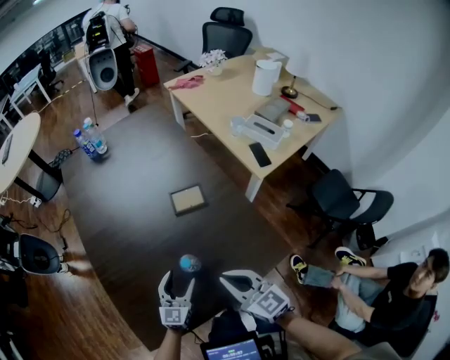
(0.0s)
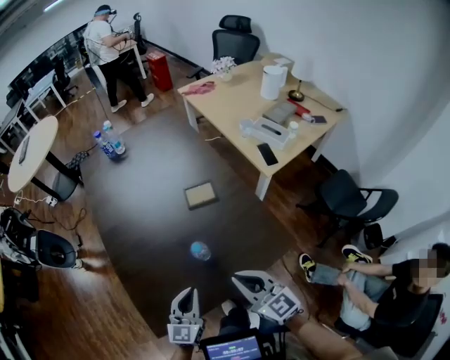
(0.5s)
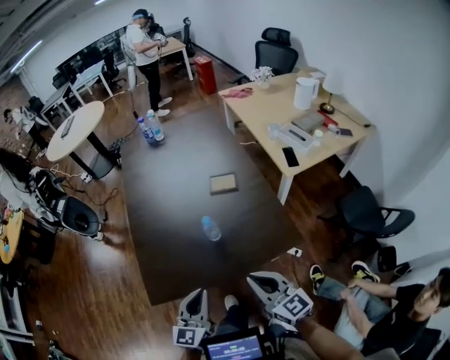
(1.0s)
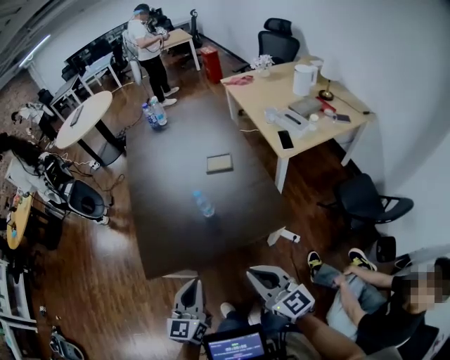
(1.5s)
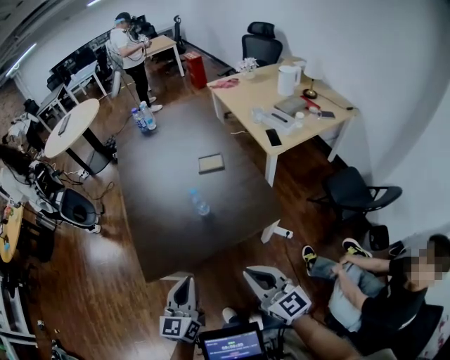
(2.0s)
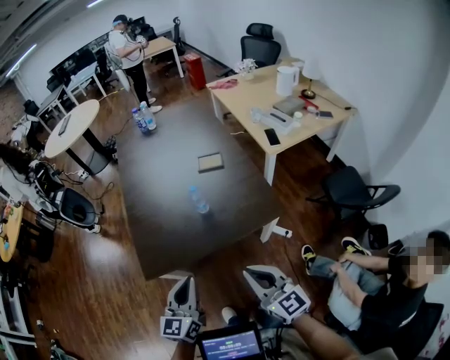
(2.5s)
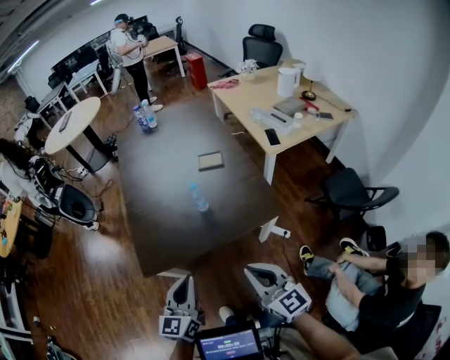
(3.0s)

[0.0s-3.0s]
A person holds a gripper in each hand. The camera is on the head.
0.0s to 1.5s: The left gripper travels backward and upward by some 40 cm, and closes its fingers. The right gripper moves backward, some 25 cm.
1.5s to 3.0s: The right gripper moves roughly 5 cm. Meanwhile the left gripper ends up approximately 5 cm from where it was.

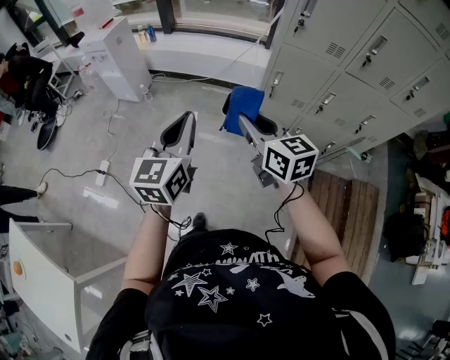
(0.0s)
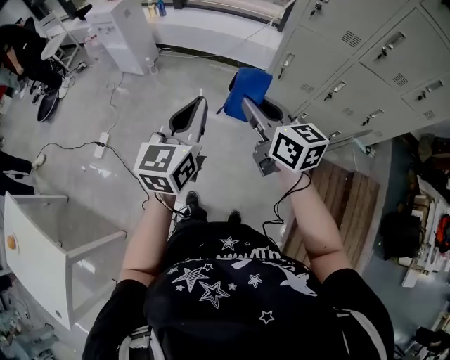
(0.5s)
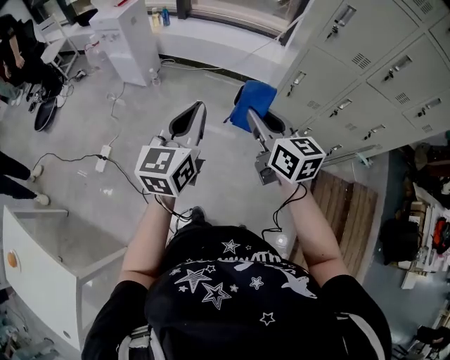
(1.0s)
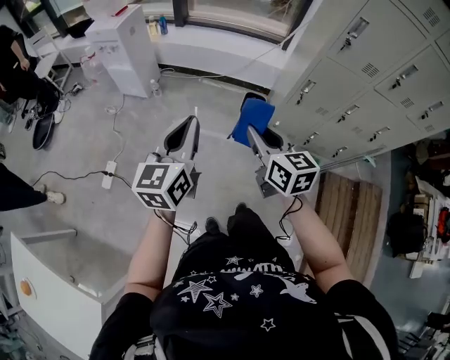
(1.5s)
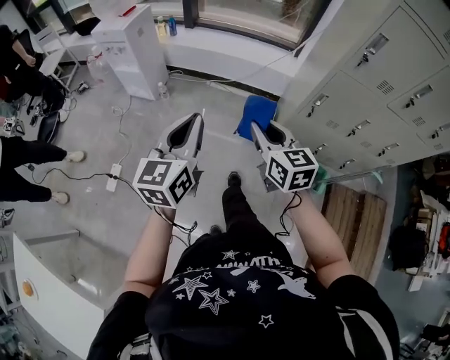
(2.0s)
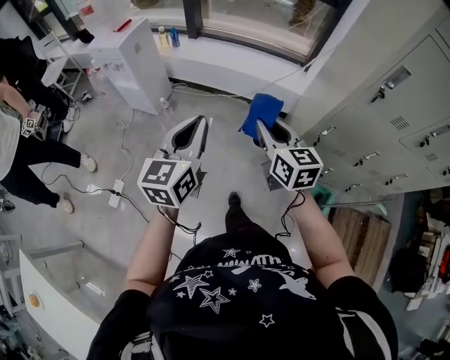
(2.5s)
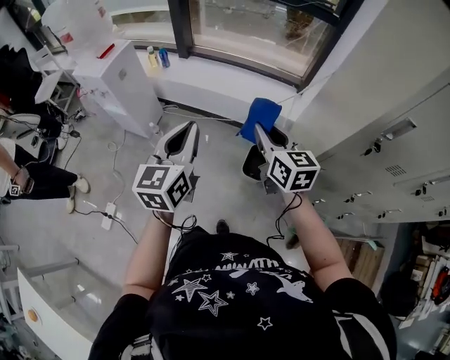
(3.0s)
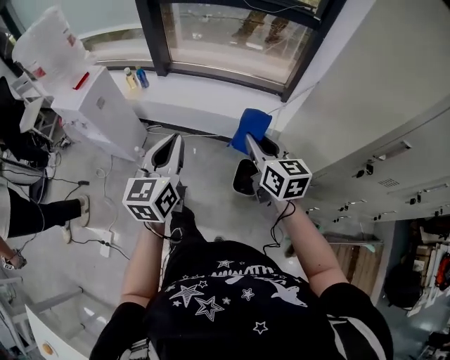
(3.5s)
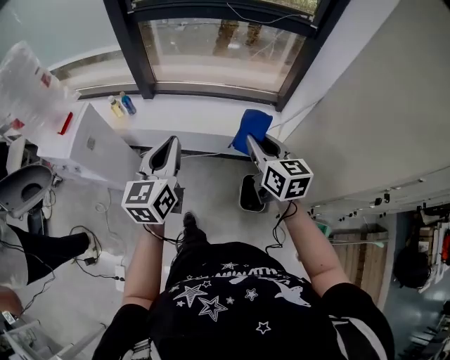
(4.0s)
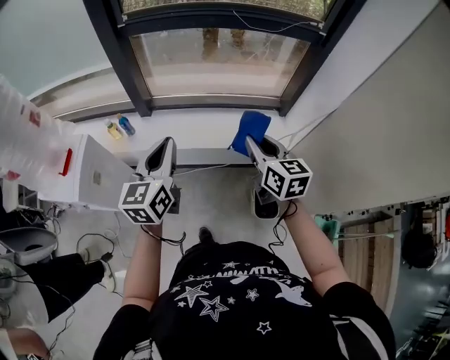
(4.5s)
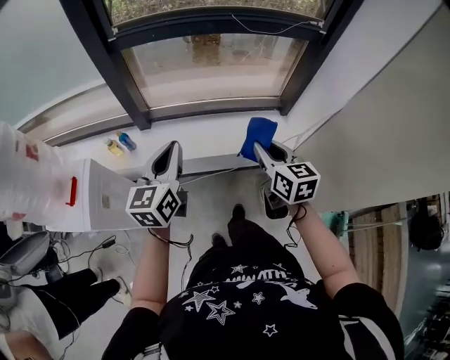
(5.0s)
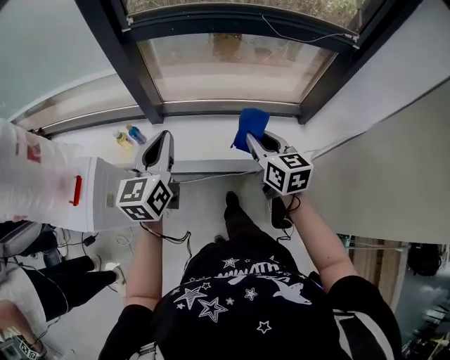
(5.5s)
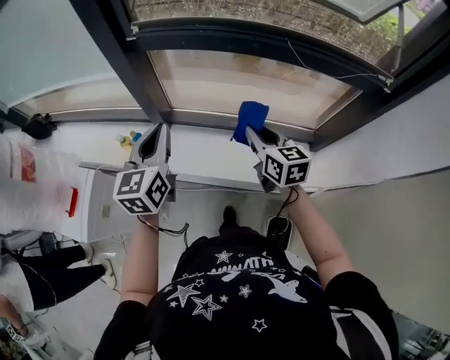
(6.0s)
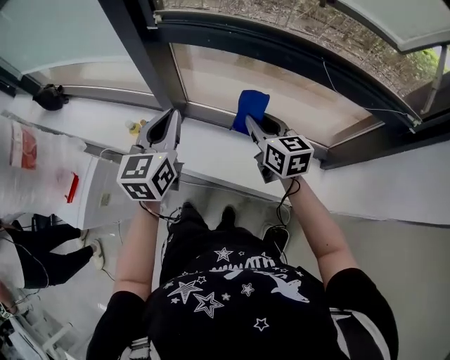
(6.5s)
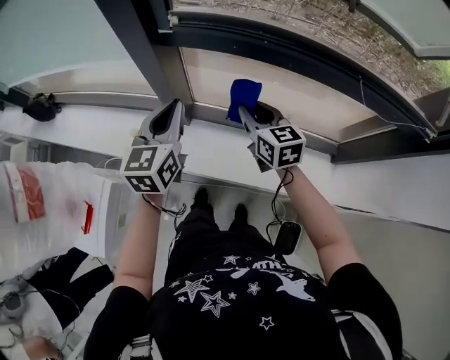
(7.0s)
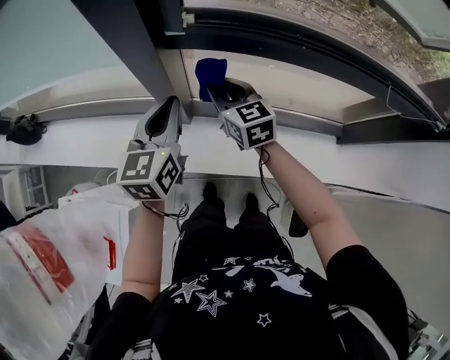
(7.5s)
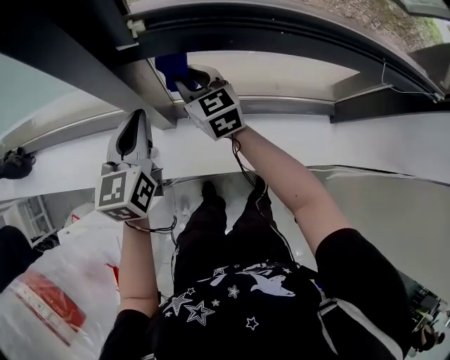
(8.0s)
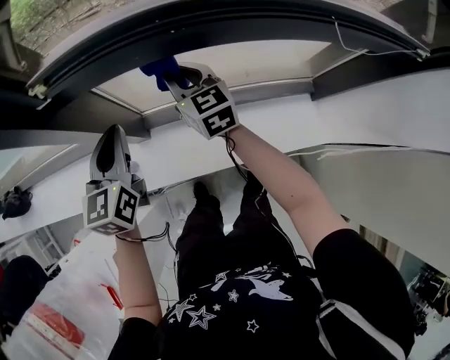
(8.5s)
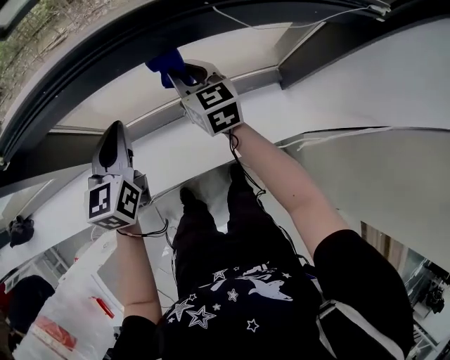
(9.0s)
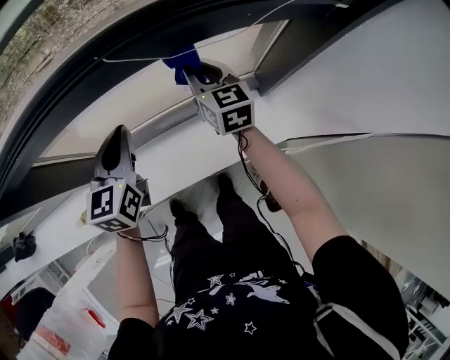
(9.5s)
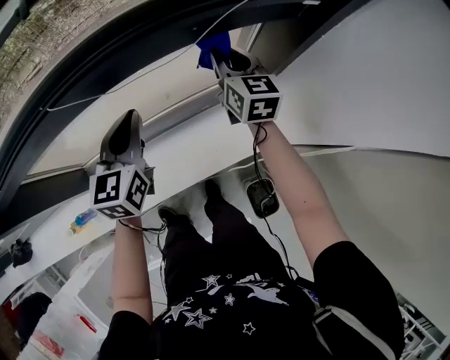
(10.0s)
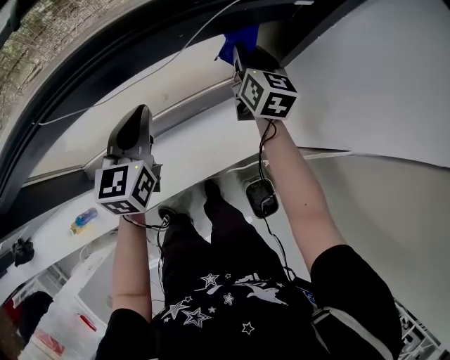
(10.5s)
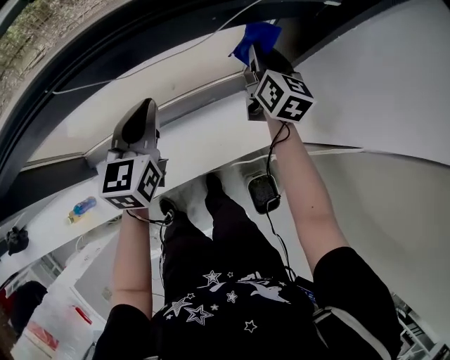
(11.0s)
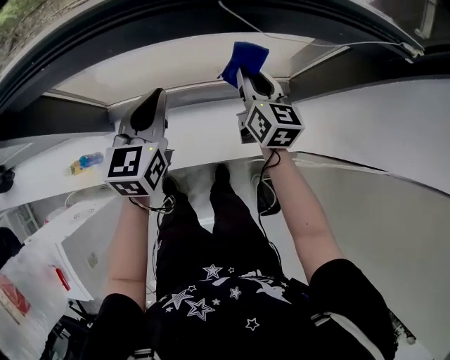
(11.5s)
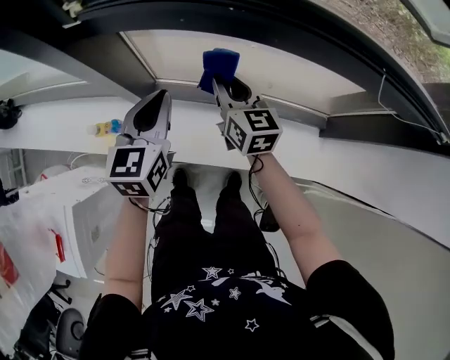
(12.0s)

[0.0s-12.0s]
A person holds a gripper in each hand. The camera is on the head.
0.0s to 2.0s: Both grippers move to the left and forward, approximately 20 cm.
2.0s to 4.0s: The two grippers travel together, forward, about 50 cm.
4.0s to 6.0s: The two grippers travel together, forward, roughly 40 cm.
6.0s to 8.0s: The right gripper heads forward and to the left, covering approximately 40 cm; the left gripper goes some 25 cm forward and to the left.
8.0s to 10.0s: The pair of grippers is taken some 60 cm. The left gripper changes its angle by roughly 20 degrees. The right gripper swivels approximately 40 degrees.
10.0s to 12.0s: The right gripper moves some 50 cm, and turns by approximately 30 degrees. Meanwhile the left gripper changes place by some 35 cm, and swivels some 20 degrees.

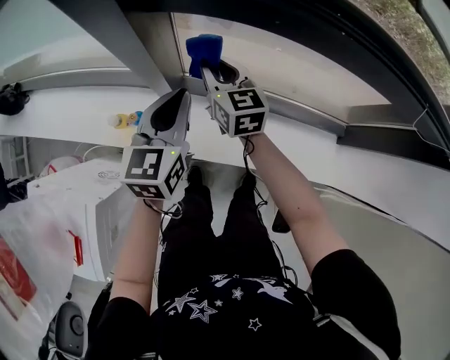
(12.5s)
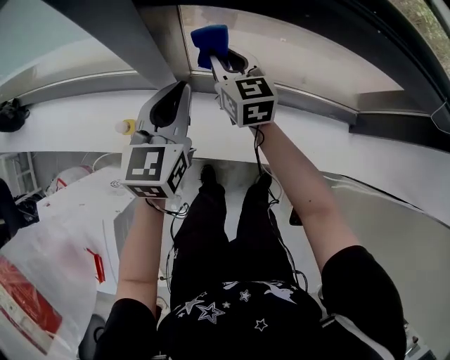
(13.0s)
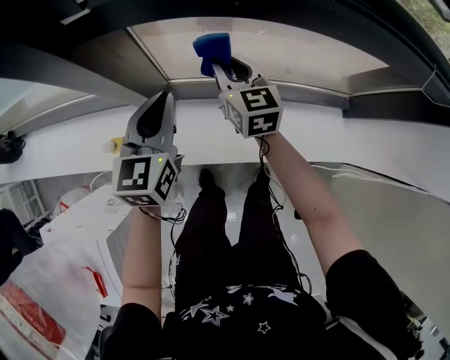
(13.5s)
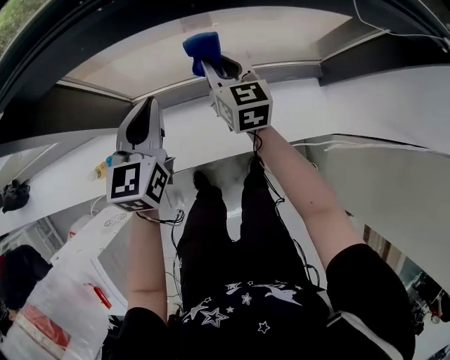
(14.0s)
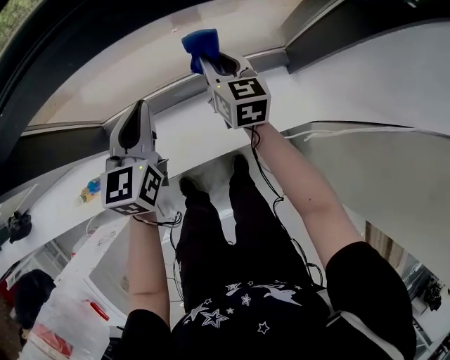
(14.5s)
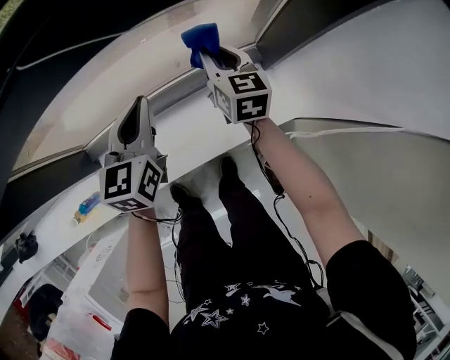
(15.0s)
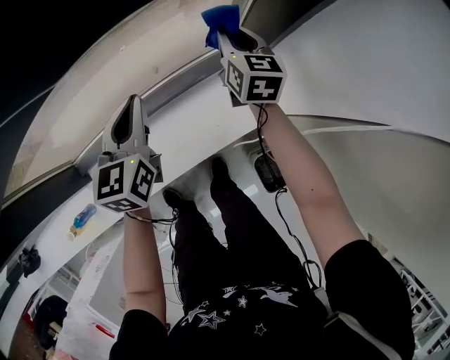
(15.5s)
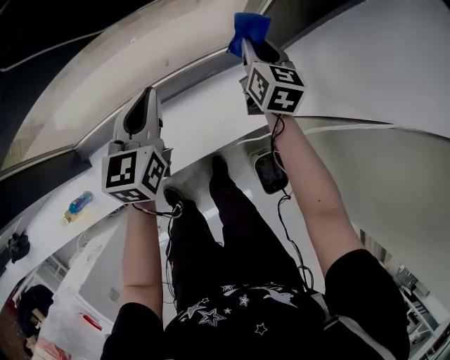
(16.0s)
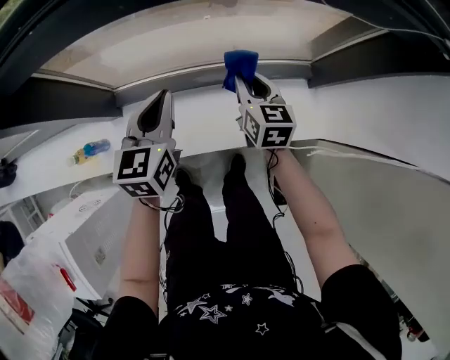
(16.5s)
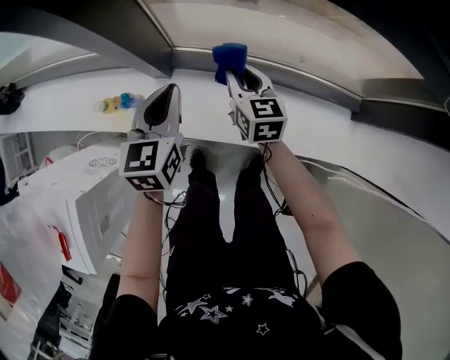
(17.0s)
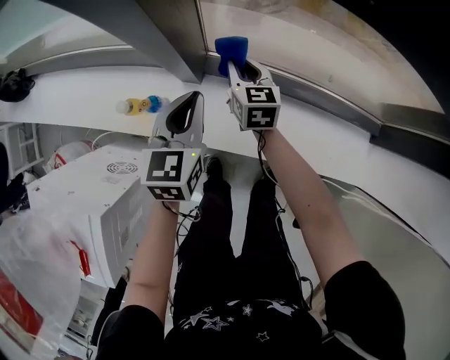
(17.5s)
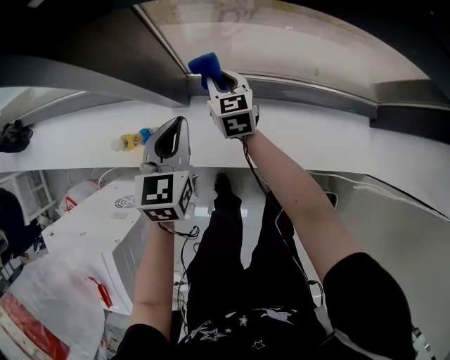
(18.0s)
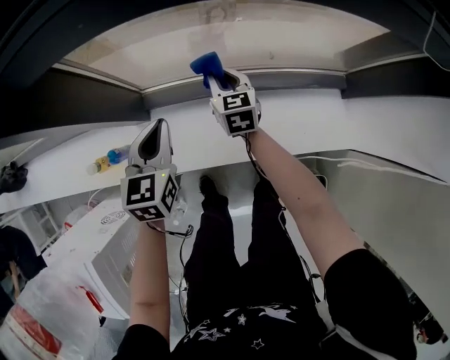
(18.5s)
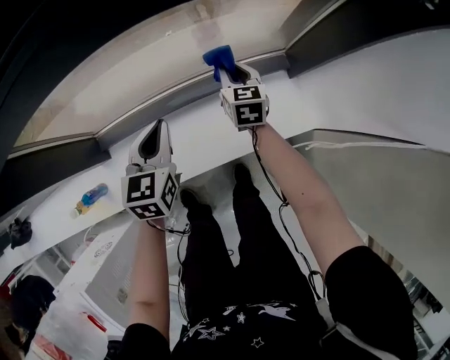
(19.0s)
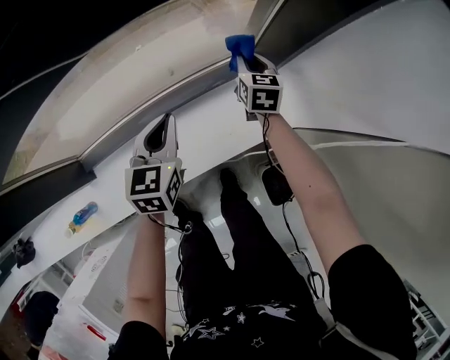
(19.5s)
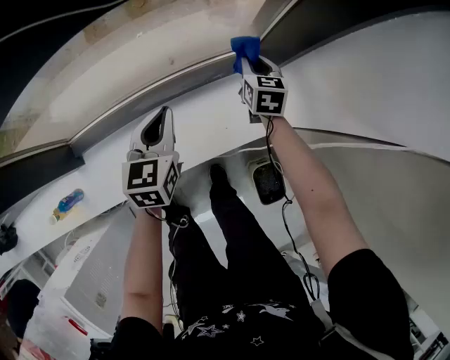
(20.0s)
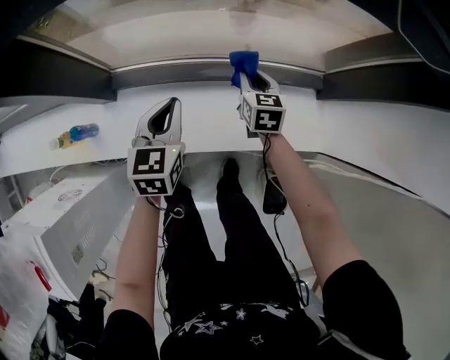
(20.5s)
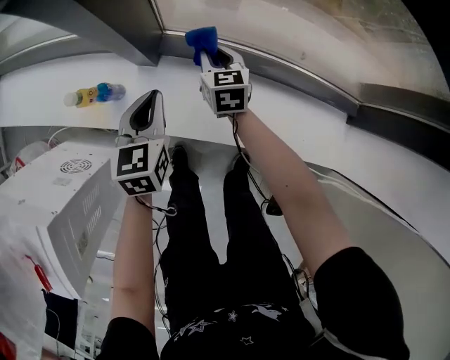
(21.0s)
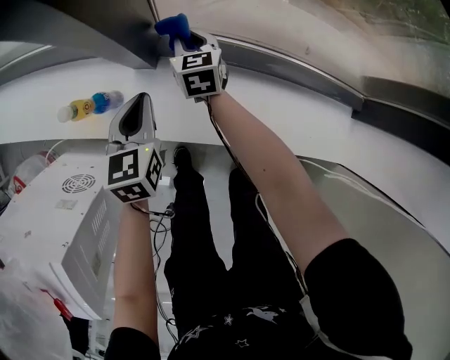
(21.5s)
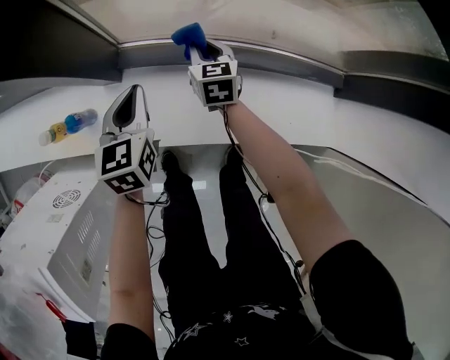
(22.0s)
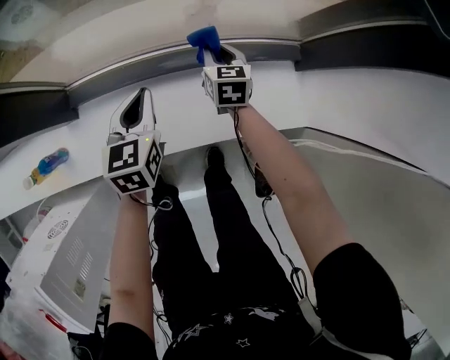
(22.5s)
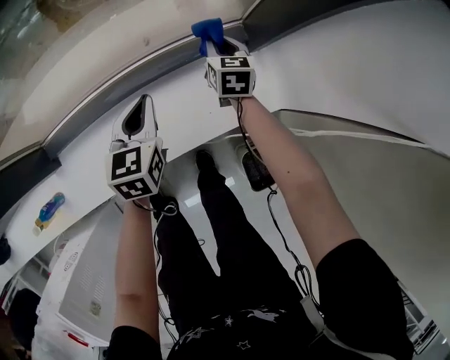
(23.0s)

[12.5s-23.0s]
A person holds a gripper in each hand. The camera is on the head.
12.5s to 14.5s: Both grippers move to the right, roughly 35 cm. The right gripper changes its angle by about 30 degrees.
14.5s to 16.5s: The right gripper moves backward, roughly 5 cm, and travels to the right and back again, some 25 cm each way. The left gripper goes to the right and returns, roughly 15 cm each way.
16.5s to 19.0s: The left gripper is displaced downward by approximately 5 cm.
19.0s to 21.0s: The left gripper moves approximately 35 cm, and rotates some 30 degrees, while the right gripper ends up some 40 cm from where it was, and changes its angle by some 30 degrees.
21.0s to 23.0s: The pair of grippers is taken about 50 cm. The left gripper turns by some 30 degrees. Meanwhile the right gripper swivels approximately 40 degrees.

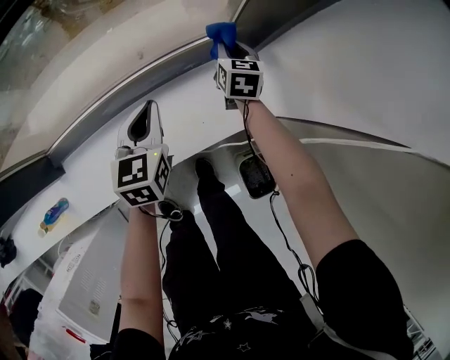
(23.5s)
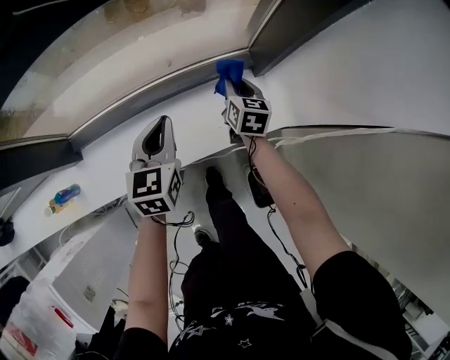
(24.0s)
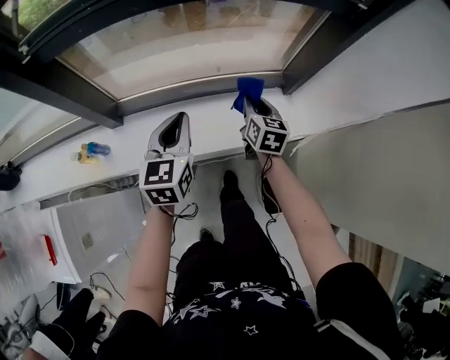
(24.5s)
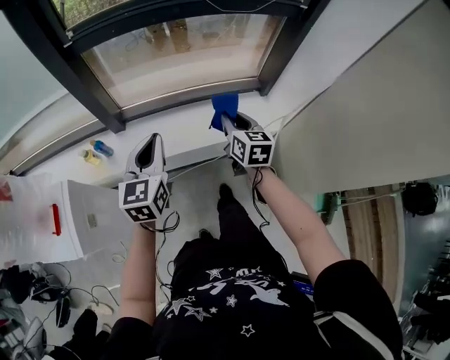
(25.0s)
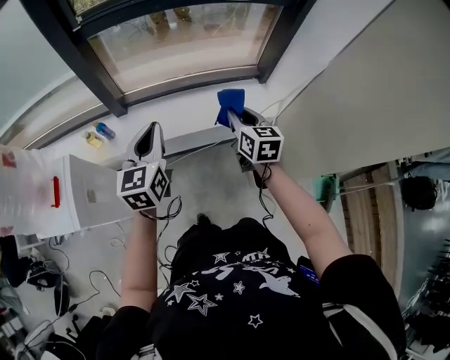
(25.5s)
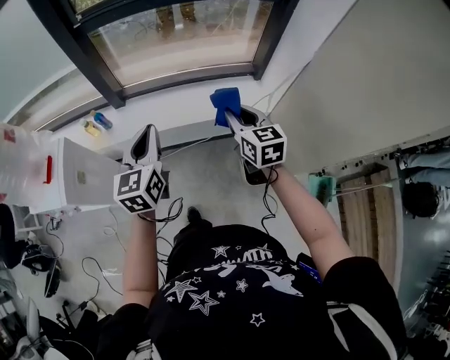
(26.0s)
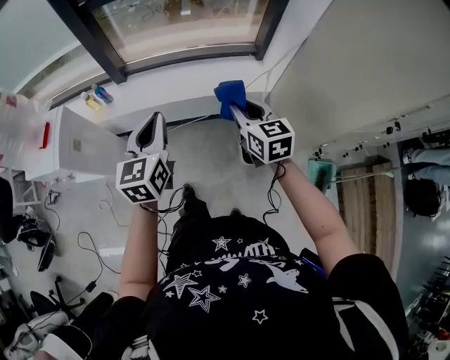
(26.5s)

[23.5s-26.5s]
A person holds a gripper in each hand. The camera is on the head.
23.5s to 25.0s: The two grippers travel together, backward and to the left, roughly 50 cm. The grippers both shift upward by about 30 cm. The right gripper changes its angle by approximately 20 degrees. The left gripper turns by some 20 degrees.
25.0s to 26.5s: The right gripper travels backward by roughly 25 cm. The left gripper moves backward and to the right, approximately 25 cm.
